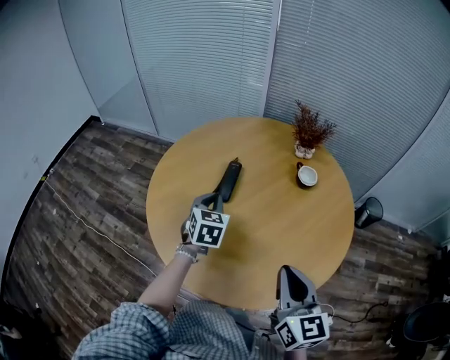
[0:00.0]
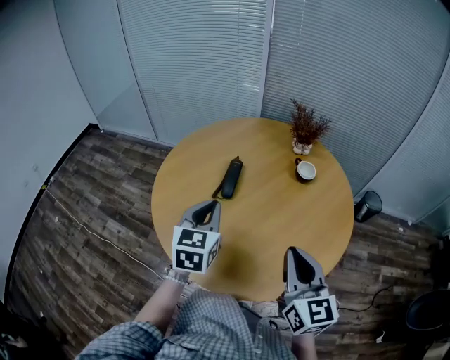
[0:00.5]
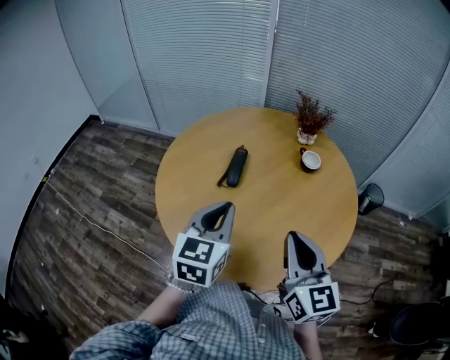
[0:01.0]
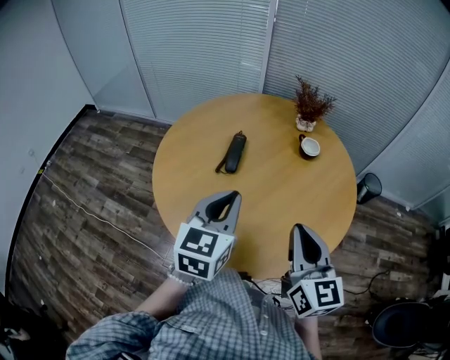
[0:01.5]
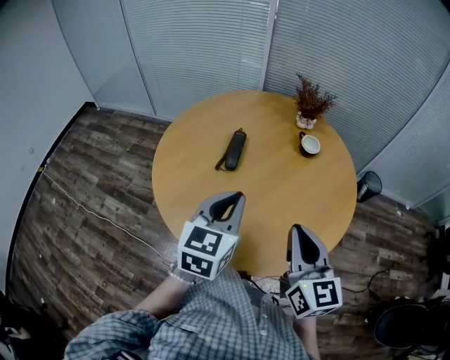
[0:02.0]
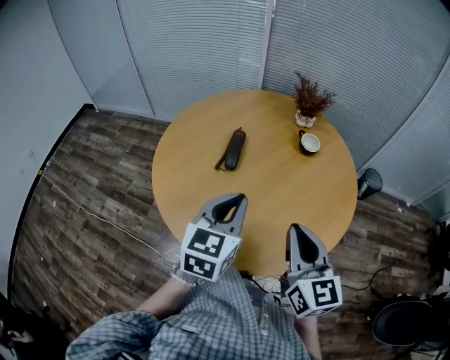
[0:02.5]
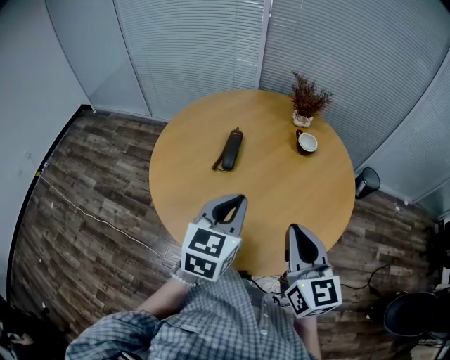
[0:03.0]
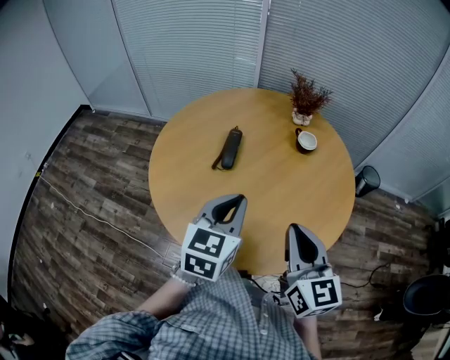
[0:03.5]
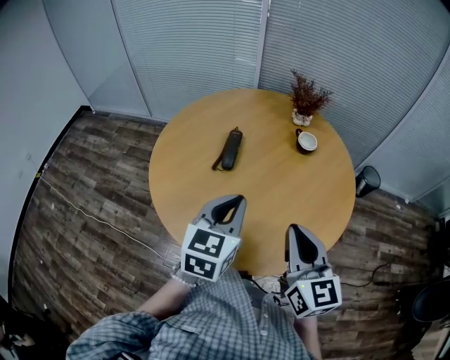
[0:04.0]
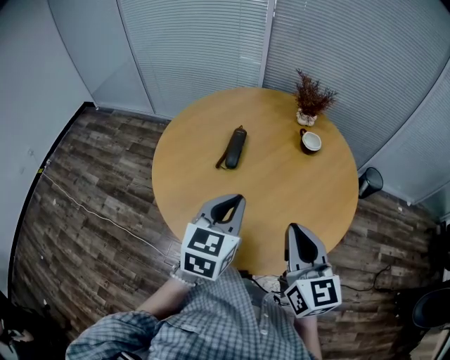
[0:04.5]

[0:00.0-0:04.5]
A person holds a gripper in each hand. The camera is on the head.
0:00.0 to 0:02.0: The left gripper is displaced backward and upward by roughly 20 cm, and swivels about 30 degrees.
0:02.0 to 0:04.5: The grippers move only a little.

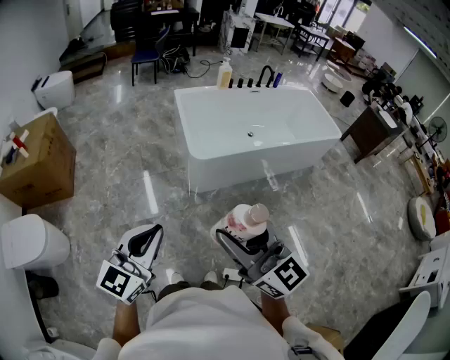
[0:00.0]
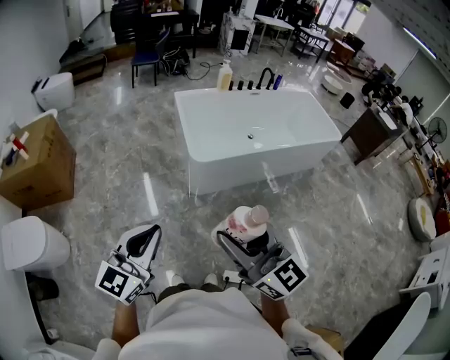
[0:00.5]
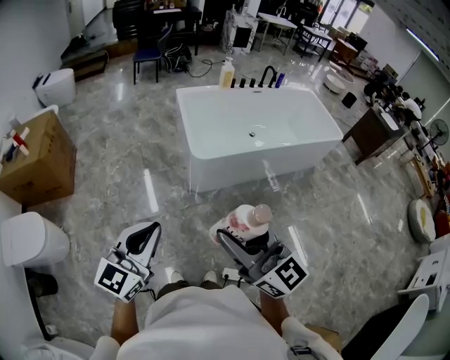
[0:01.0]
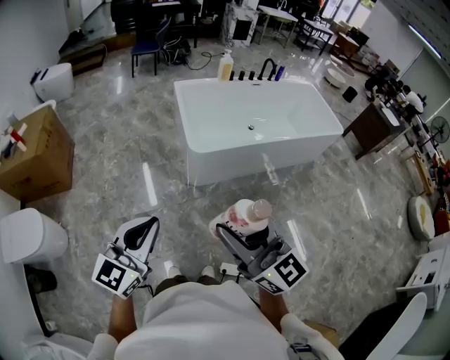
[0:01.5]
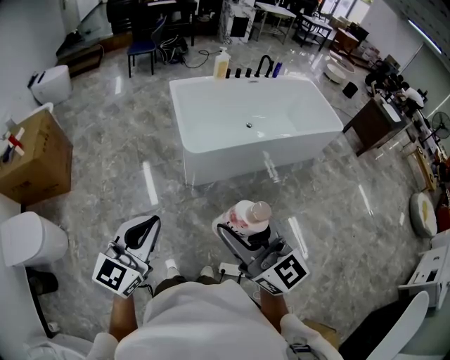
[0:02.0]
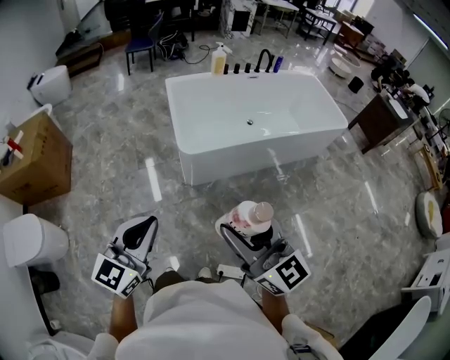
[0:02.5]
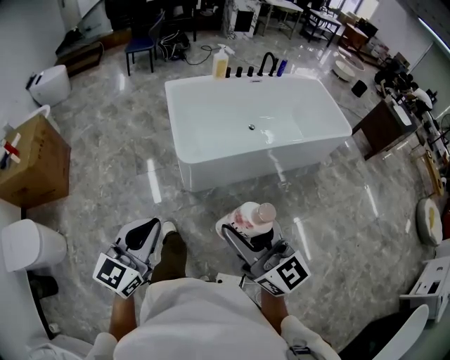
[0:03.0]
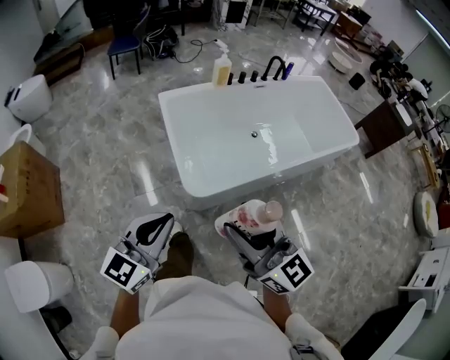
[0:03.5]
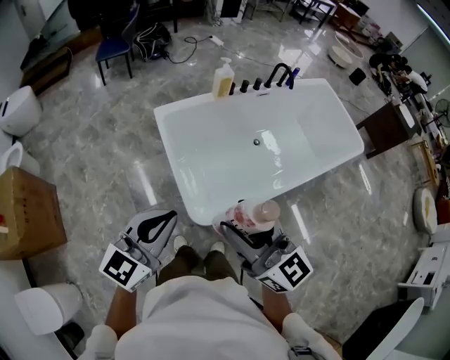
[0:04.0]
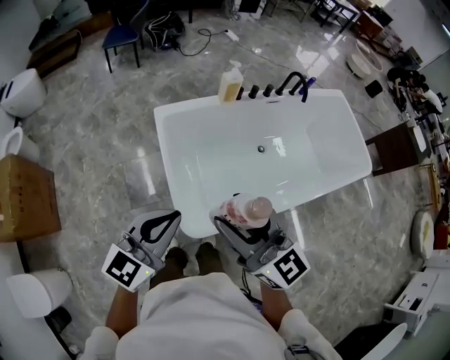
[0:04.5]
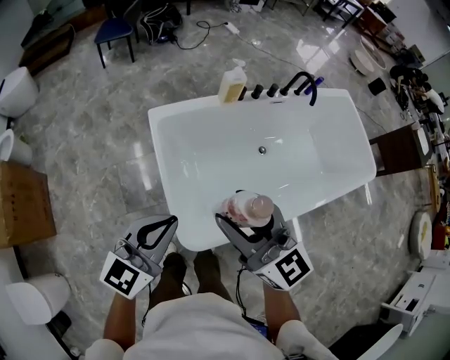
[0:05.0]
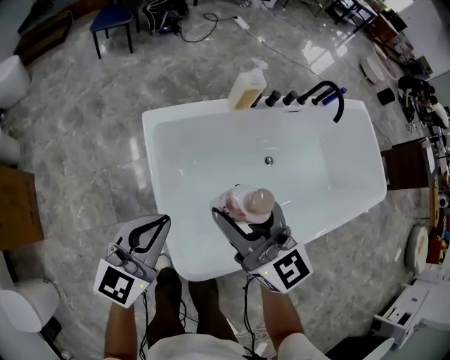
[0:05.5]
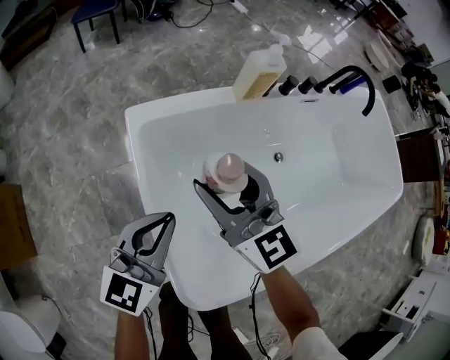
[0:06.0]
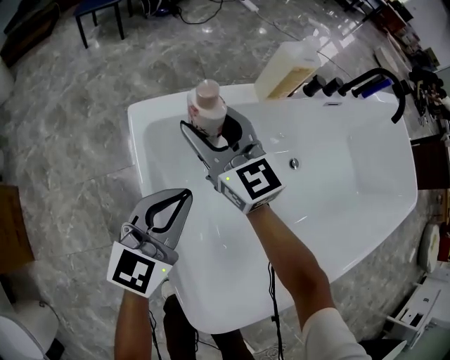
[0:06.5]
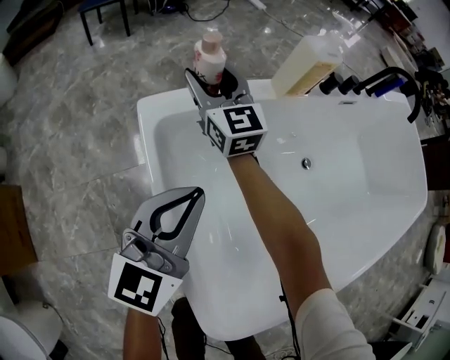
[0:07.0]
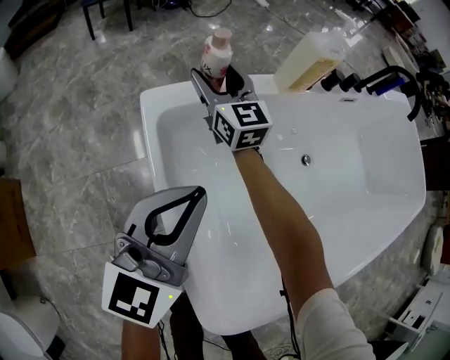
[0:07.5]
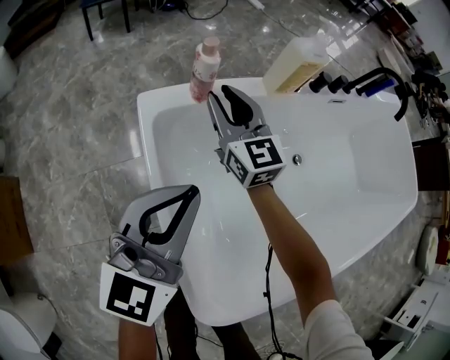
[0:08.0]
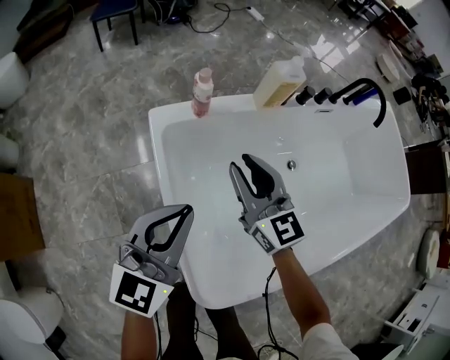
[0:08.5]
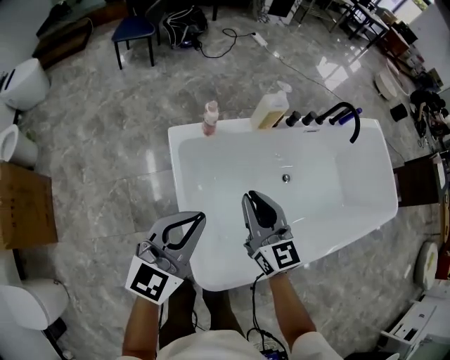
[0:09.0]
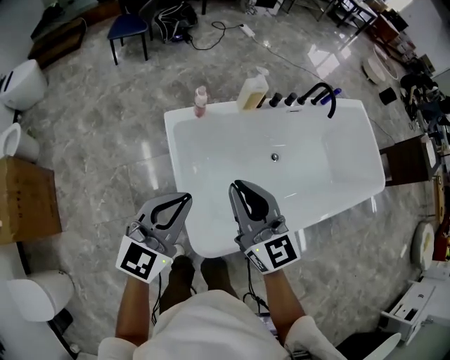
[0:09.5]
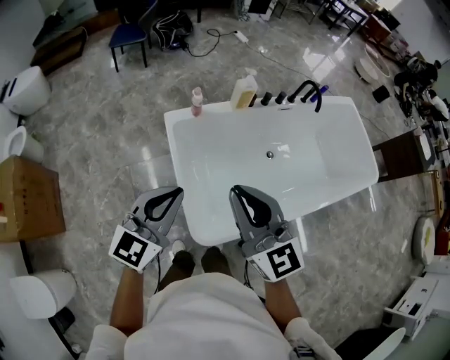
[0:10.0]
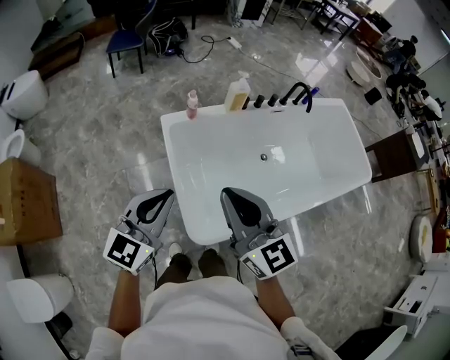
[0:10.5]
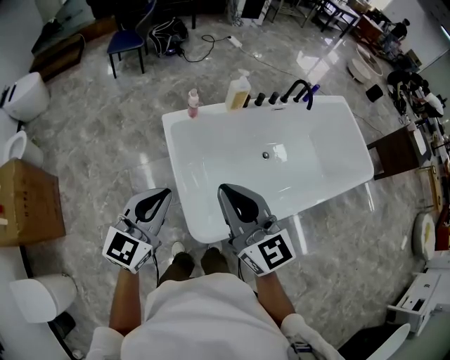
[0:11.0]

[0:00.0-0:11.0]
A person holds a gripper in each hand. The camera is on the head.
0:00.0 to 0:02.0: The right gripper changes place by some 5 cm.
0:02.0 to 0:03.5: The two grippers go about 35 cm forward.
0:03.5 to 0:05.5: Both grippers are carried forward, approximately 50 cm.
0:05.5 to 0:07.5: The right gripper travels forward and downward by roughly 50 cm; the left gripper shifts roughly 25 cm downward and forward.
0:07.5 to 0:09.0: The right gripper moves backward, upward and to the right, some 40 cm, and closes. The left gripper shifts roughly 25 cm upward and backward.
0:09.0 to 0:11.0: The left gripper travels backward and upward by some 20 cm. The right gripper is displaced upward and backward by approximately 30 cm.

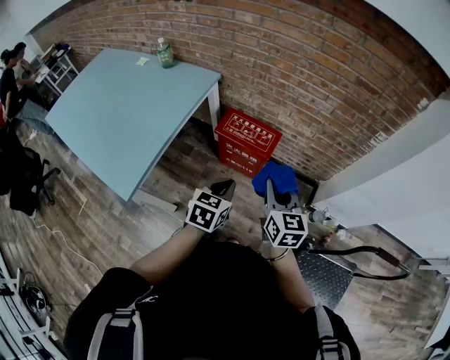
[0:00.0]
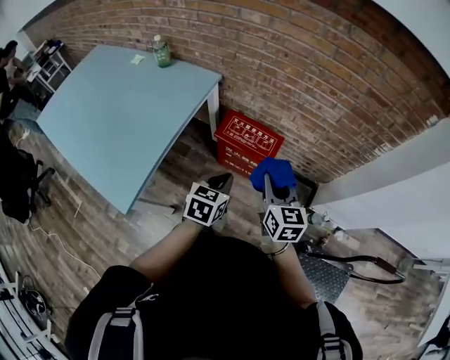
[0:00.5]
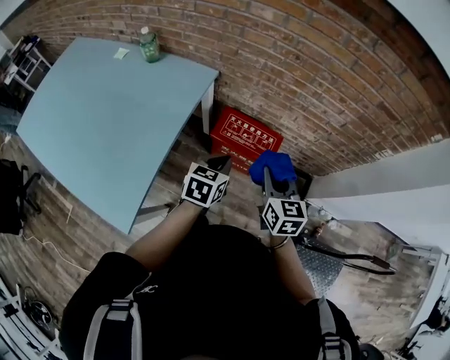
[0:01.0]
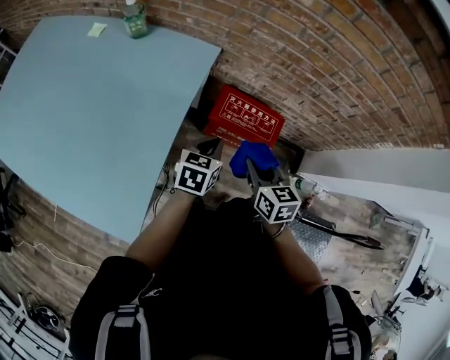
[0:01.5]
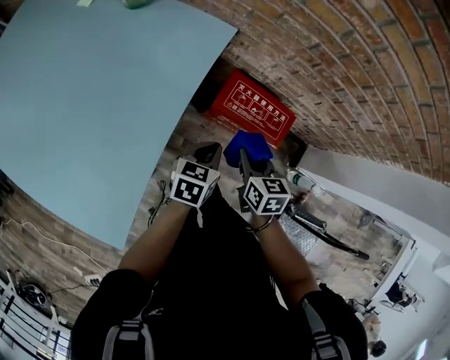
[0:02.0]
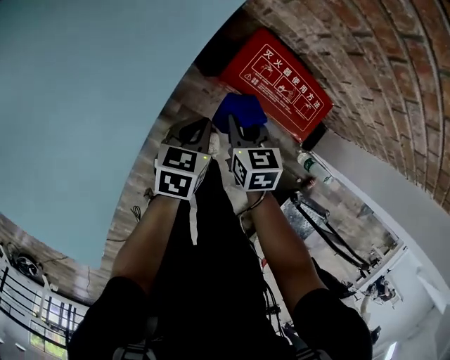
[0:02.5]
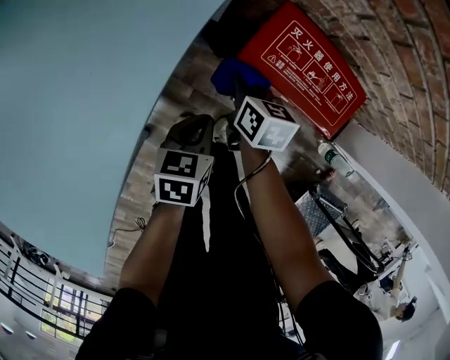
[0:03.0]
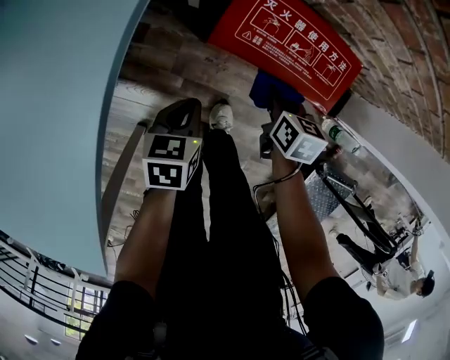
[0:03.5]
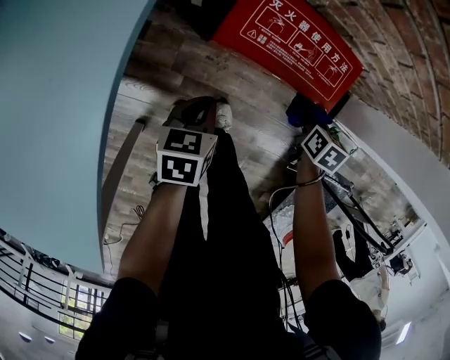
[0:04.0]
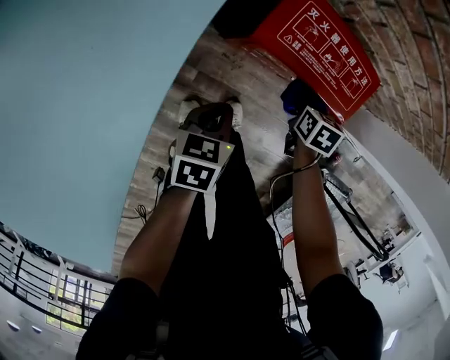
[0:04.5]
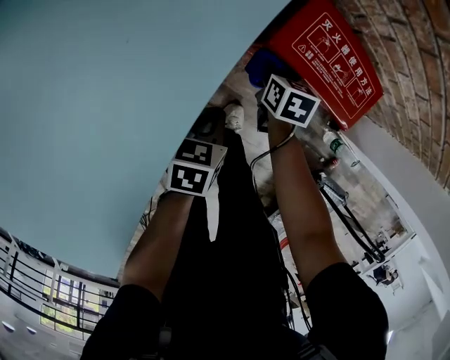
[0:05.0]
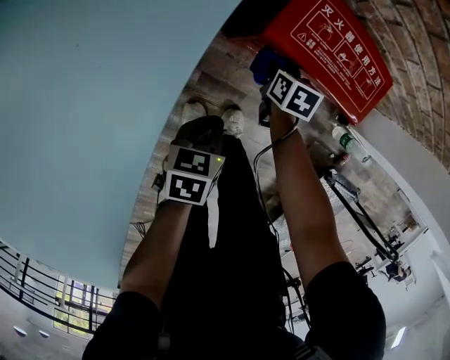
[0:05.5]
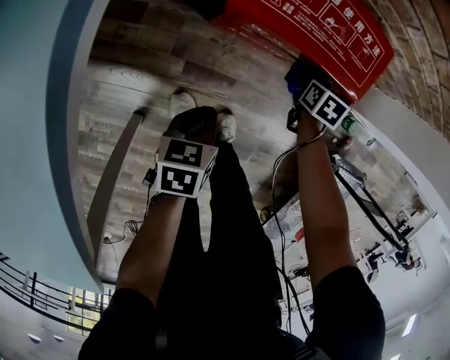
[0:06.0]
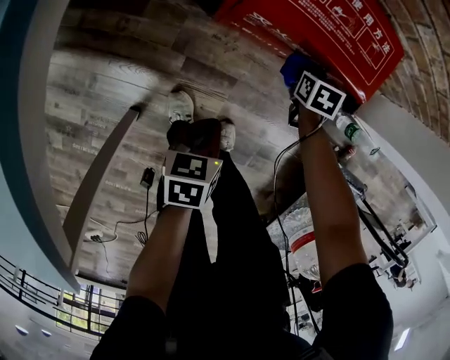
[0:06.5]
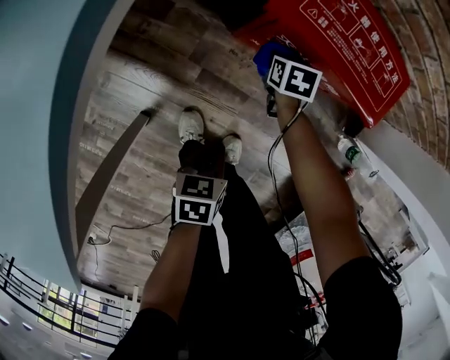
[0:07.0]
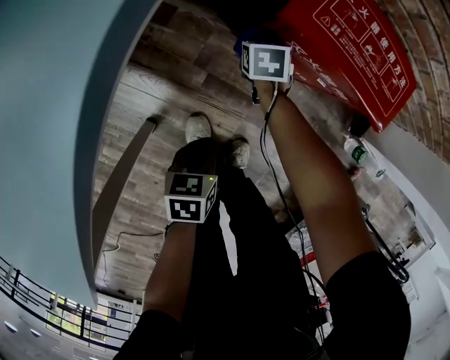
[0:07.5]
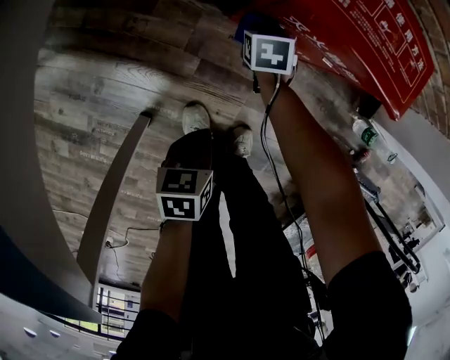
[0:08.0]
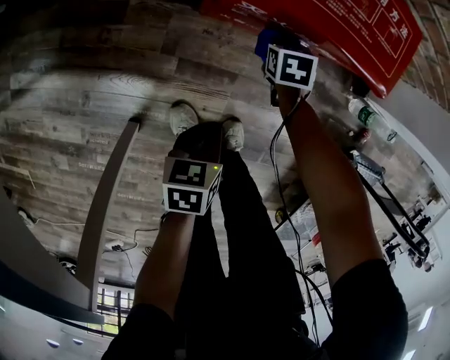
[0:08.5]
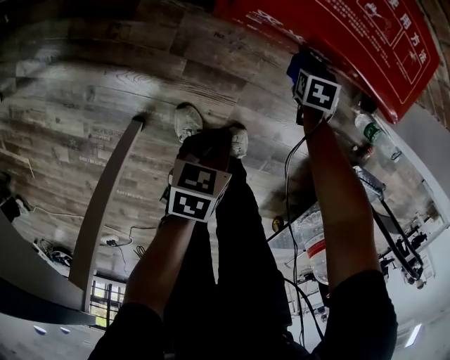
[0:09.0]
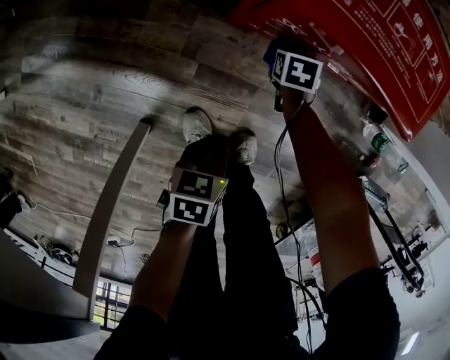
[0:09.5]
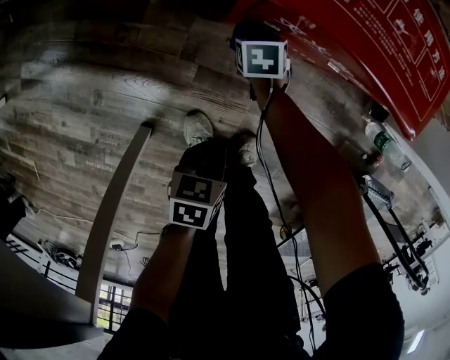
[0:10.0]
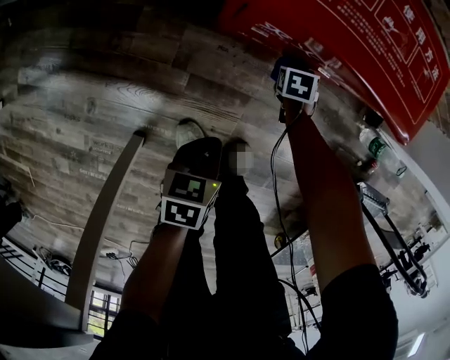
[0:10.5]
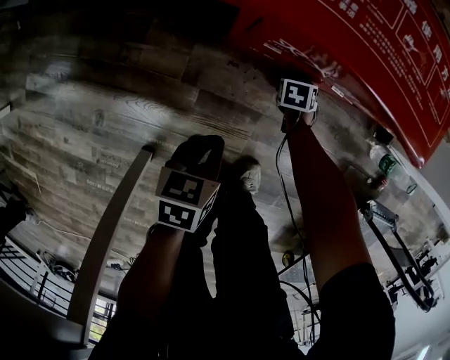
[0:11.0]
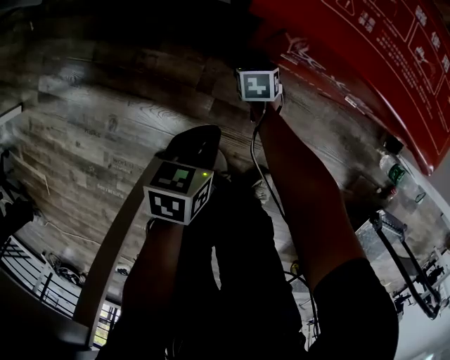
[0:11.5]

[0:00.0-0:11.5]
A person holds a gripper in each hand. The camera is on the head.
0:00.0 to 0:02.0: The left gripper shifts approximately 35 cm forward, to the left and downward; the right gripper goes about 40 cm to the left, forward and downward, and changes its angle by some 30 degrees.
0:02.0 to 0:04.0: The right gripper travels downward and to the right by some 35 cm, and changes its angle by approximately 30 degrees. Meanwhile the left gripper goes approximately 25 cm downward.
0:04.0 to 0:06.0: The left gripper travels backward and downward by approximately 10 cm. The right gripper moves downward, about 10 cm, and reaches about 25 cm to the left, then returns.
0:06.0 to 0:07.5: The right gripper goes about 30 cm to the left, and rotates approximately 30 degrees. Meanwhile the left gripper heads backward, covering approximately 10 cm.
0:07.5 to 0:09.5: The left gripper moves downward, approximately 5 cm. The right gripper shifts by roughly 20 cm.
0:09.5 to 0:11.5: The left gripper shifts by approximately 10 cm; the right gripper moves about 15 cm.
